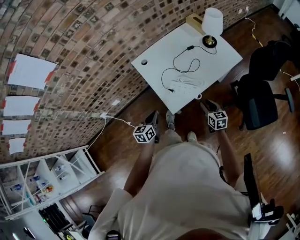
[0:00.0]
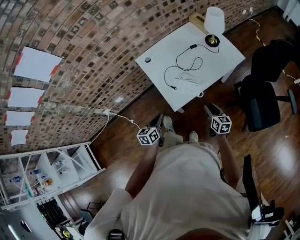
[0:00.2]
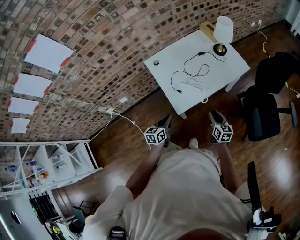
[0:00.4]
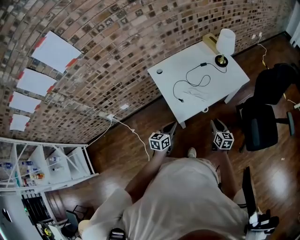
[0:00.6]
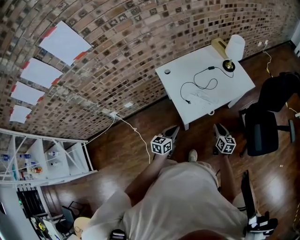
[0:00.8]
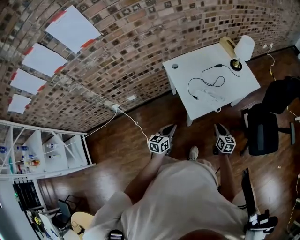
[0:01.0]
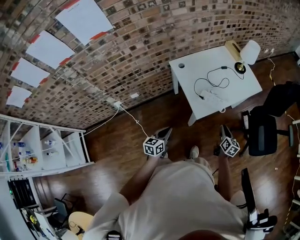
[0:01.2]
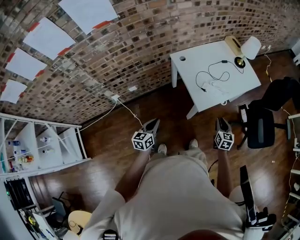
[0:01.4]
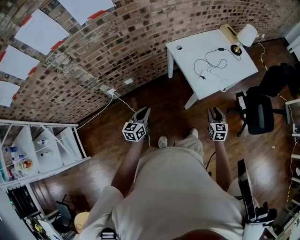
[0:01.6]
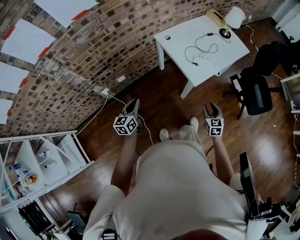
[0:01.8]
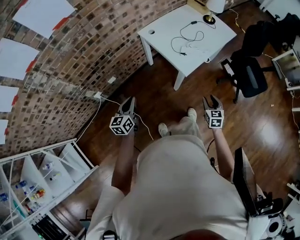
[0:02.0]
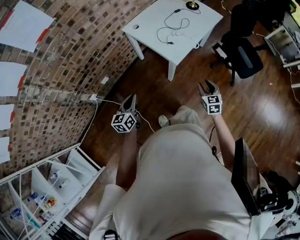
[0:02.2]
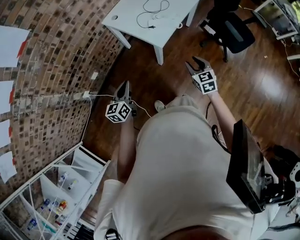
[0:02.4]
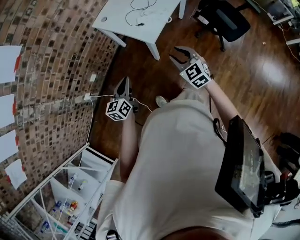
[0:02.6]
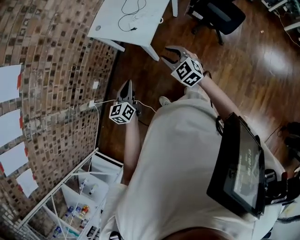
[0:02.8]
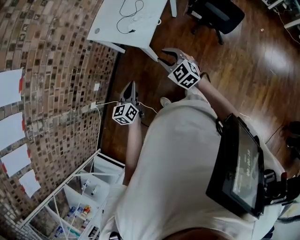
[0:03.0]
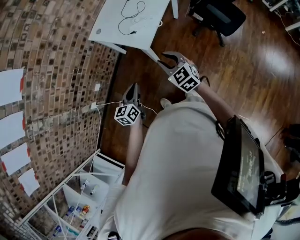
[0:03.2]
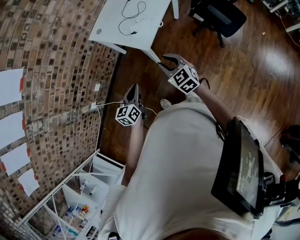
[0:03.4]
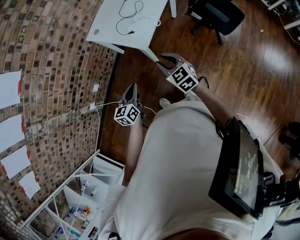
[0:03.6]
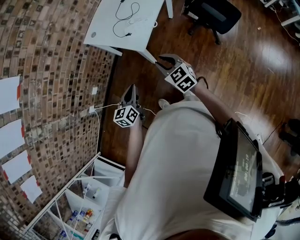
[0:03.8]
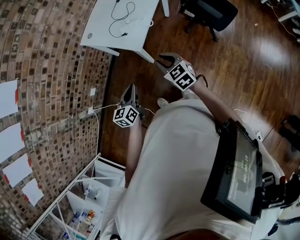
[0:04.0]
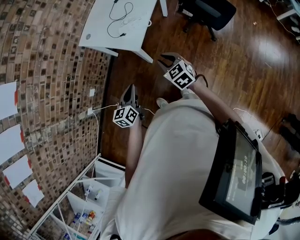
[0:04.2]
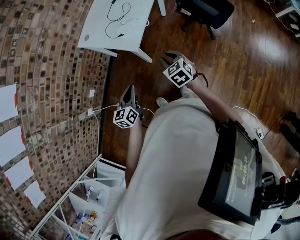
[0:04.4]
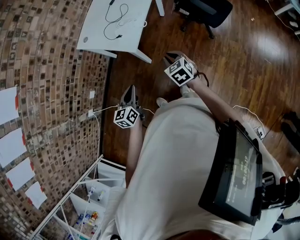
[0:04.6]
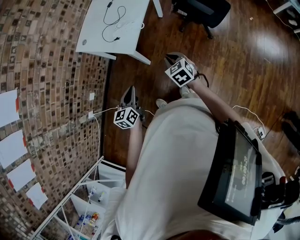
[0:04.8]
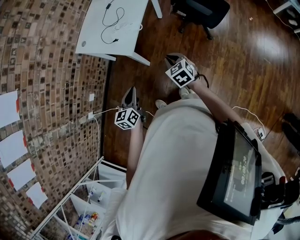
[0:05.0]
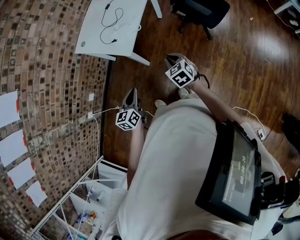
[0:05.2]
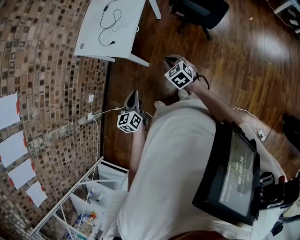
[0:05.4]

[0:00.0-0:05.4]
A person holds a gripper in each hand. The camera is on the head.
0:00.0 to 0:01.4: The left gripper moves to the left and backward, about 25 cm; the right gripper is displaced backward, to the left and upward by some 20 cm.
0:01.4 to 0:02.8: The right gripper heads backward and upward, covering approximately 15 cm, and rotates about 20 degrees. The left gripper heads to the right, covering about 10 cm, and changes its angle by approximately 20 degrees.
0:02.8 to 0:04.0: The left gripper changes place by about 5 cm.
0:04.0 to 0:05.4: The left gripper heads to the right, covering roughly 10 cm. The right gripper goes approximately 15 cm to the right and downward.

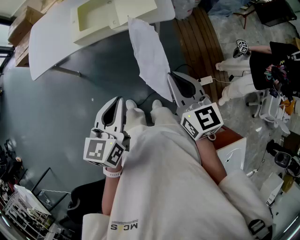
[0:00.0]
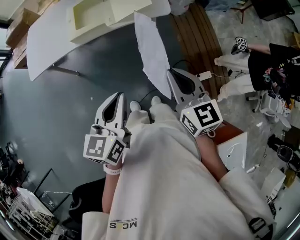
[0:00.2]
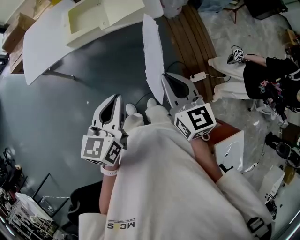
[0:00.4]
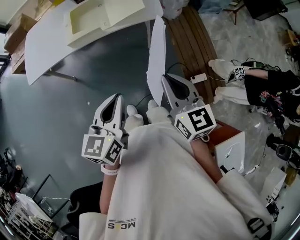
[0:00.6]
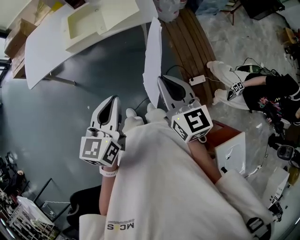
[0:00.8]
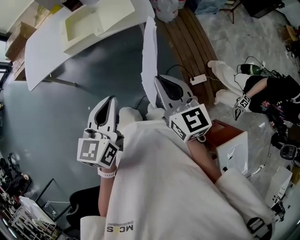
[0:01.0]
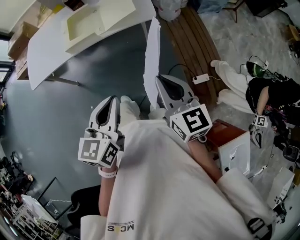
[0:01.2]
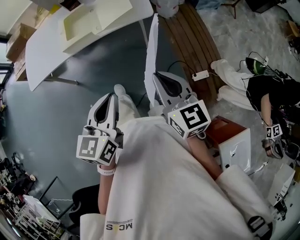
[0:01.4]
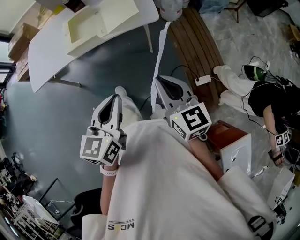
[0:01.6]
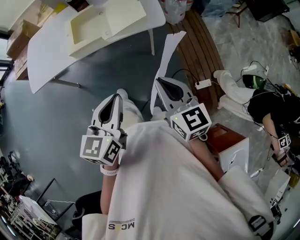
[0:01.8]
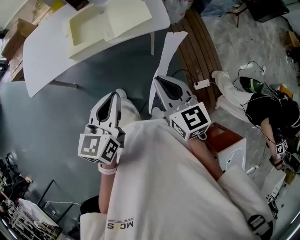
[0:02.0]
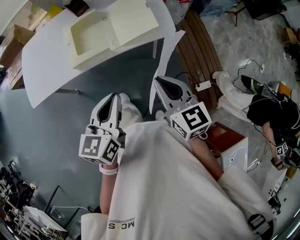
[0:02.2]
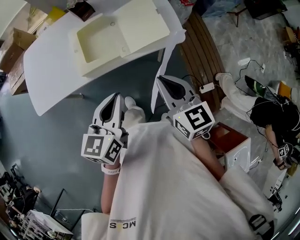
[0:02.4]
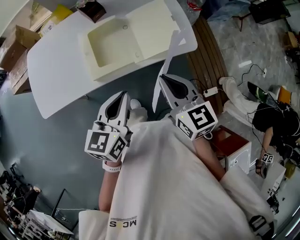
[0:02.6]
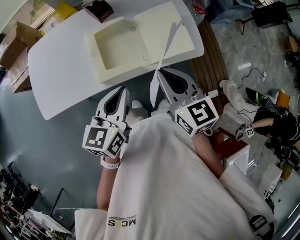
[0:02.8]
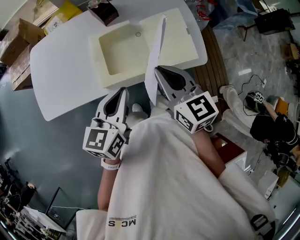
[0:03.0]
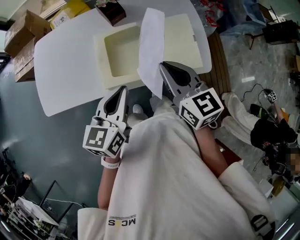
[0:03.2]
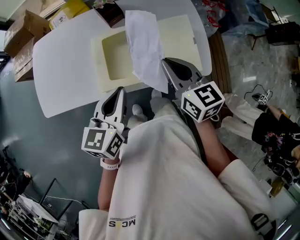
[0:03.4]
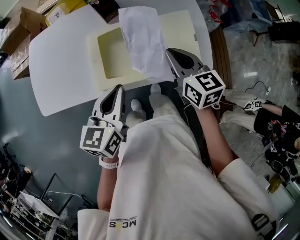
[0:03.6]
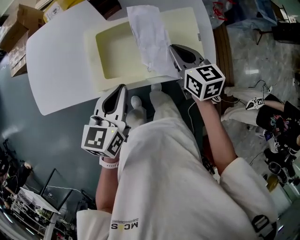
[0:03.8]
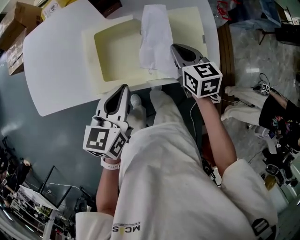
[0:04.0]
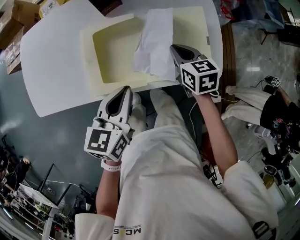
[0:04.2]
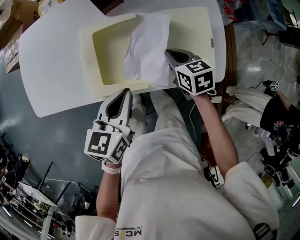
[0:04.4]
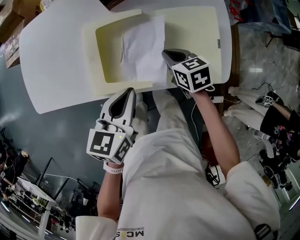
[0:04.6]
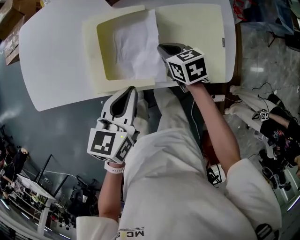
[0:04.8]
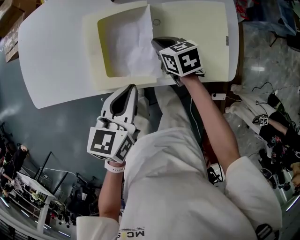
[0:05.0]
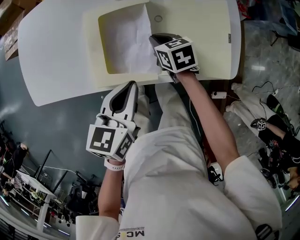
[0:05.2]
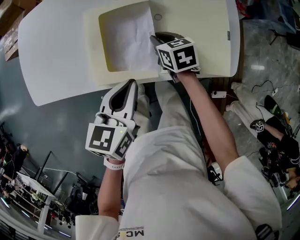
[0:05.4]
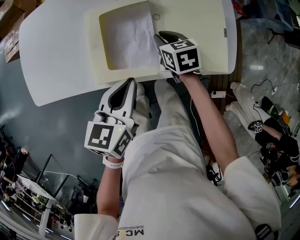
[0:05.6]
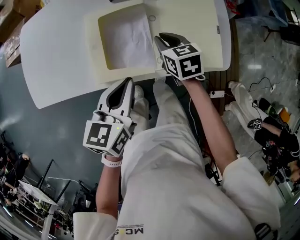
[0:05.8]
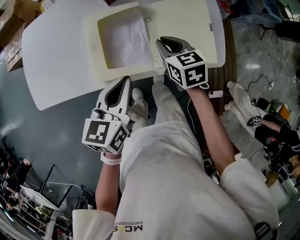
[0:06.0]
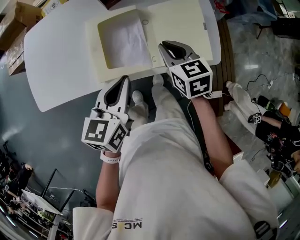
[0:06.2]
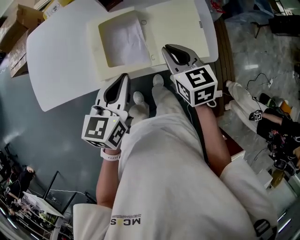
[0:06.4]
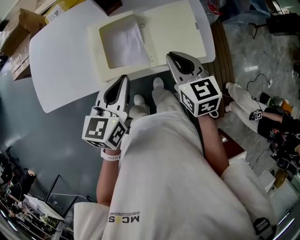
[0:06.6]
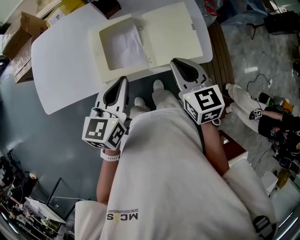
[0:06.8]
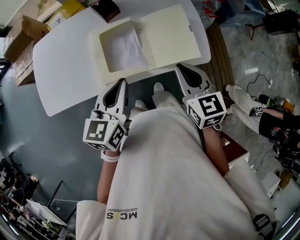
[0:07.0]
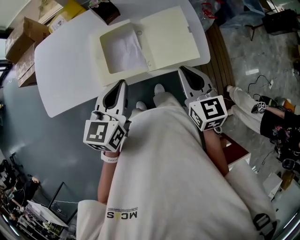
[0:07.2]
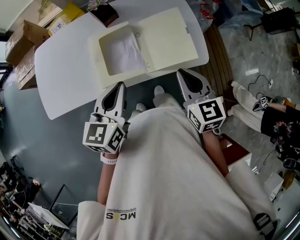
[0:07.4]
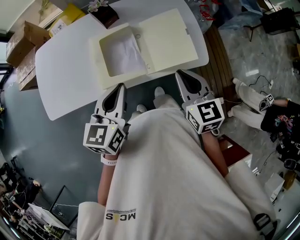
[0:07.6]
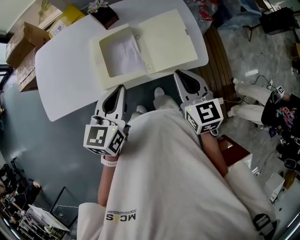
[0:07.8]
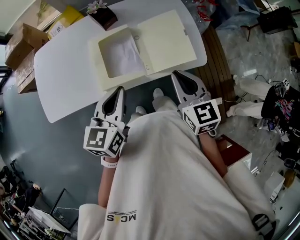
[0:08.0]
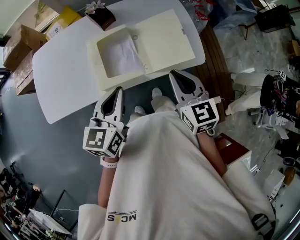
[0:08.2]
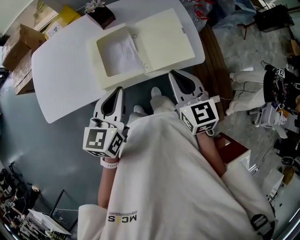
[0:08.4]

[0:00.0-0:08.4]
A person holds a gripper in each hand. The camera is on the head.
0:00.0 to 0:01.4: The right gripper moves roughly 5 cm. The left gripper goes approximately 5 cm to the right.
0:01.4 to 0:02.8: Both grippers are carried forward and to the left, roughly 40 cm.
0:02.8 to 0:04.2: The right gripper heads forward and downward, covering roughly 30 cm, and turns by approximately 30 degrees. The left gripper heads forward and downward, covering some 15 cm.
0:04.2 to 0:05.6: The right gripper shifts approximately 10 cm to the left and downward.
0:05.6 to 0:07.0: The left gripper heads upward and backward, covering roughly 10 cm; the right gripper shifts approximately 30 cm upward and backward, and turns by some 30 degrees.
0:07.0 to 0:08.4: The grippers make only small movements.

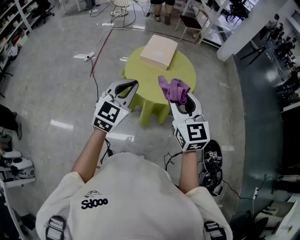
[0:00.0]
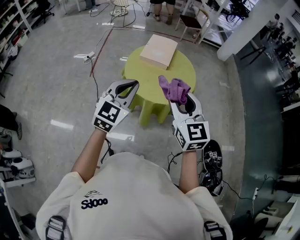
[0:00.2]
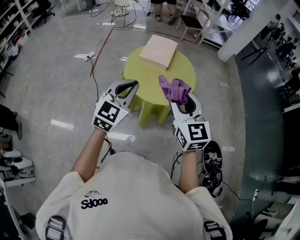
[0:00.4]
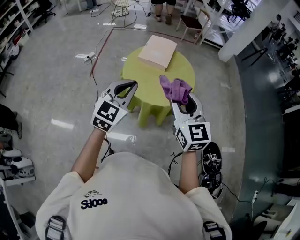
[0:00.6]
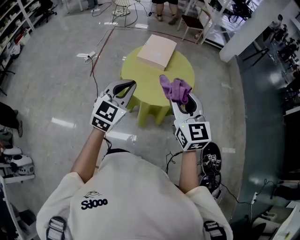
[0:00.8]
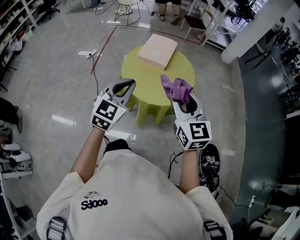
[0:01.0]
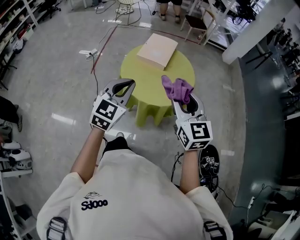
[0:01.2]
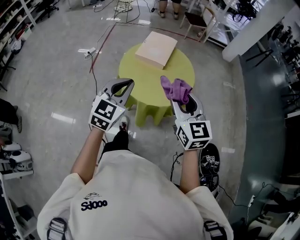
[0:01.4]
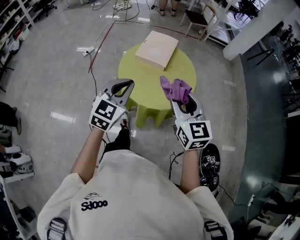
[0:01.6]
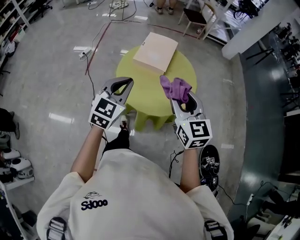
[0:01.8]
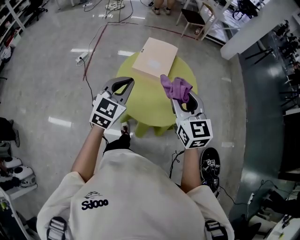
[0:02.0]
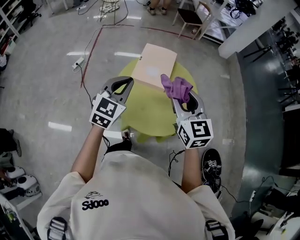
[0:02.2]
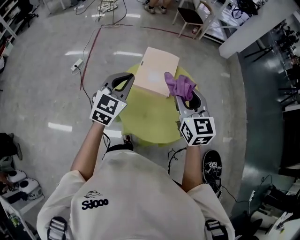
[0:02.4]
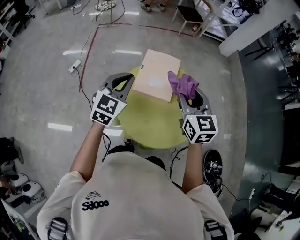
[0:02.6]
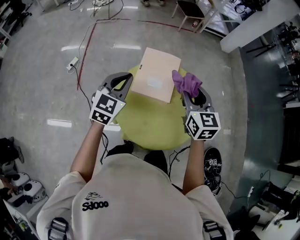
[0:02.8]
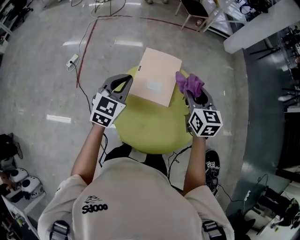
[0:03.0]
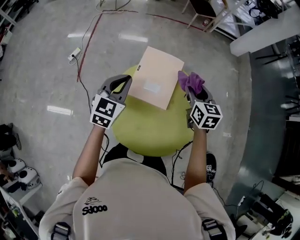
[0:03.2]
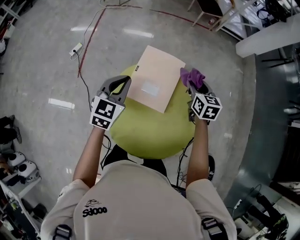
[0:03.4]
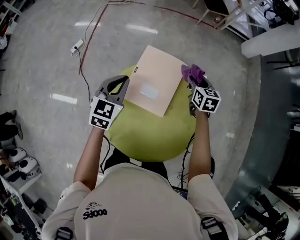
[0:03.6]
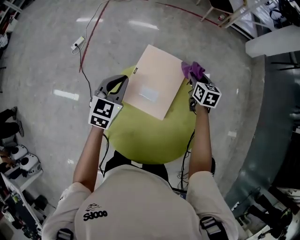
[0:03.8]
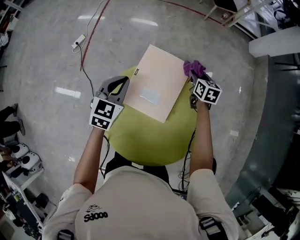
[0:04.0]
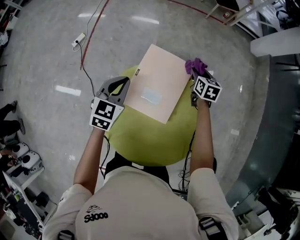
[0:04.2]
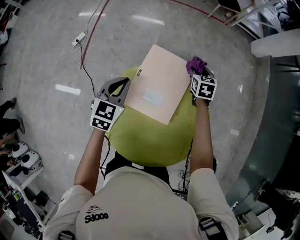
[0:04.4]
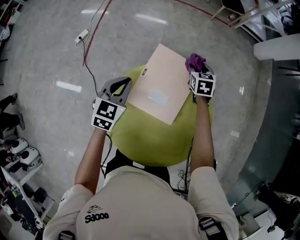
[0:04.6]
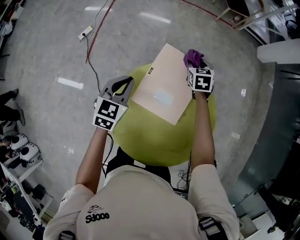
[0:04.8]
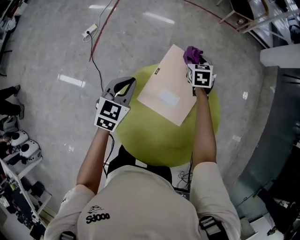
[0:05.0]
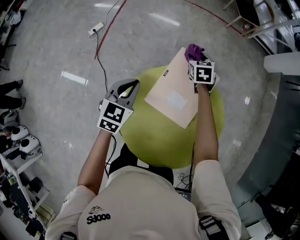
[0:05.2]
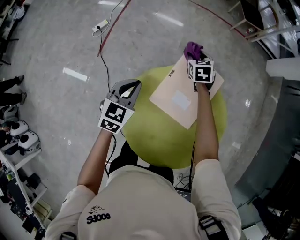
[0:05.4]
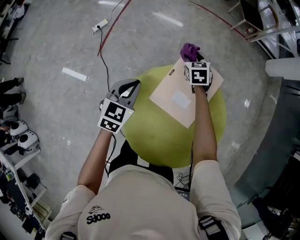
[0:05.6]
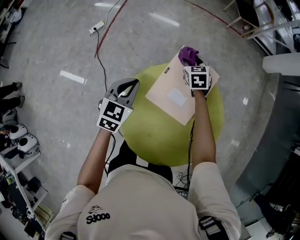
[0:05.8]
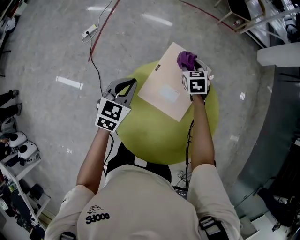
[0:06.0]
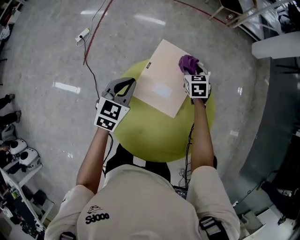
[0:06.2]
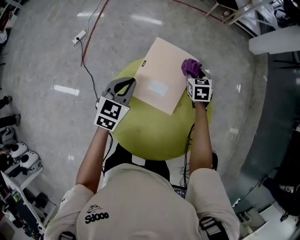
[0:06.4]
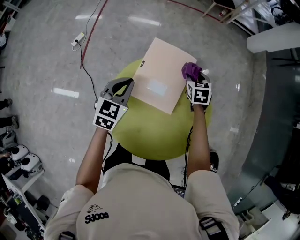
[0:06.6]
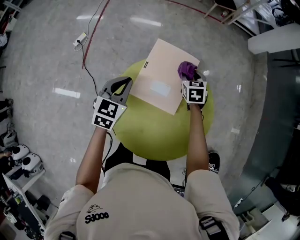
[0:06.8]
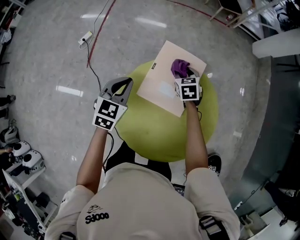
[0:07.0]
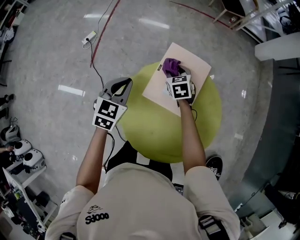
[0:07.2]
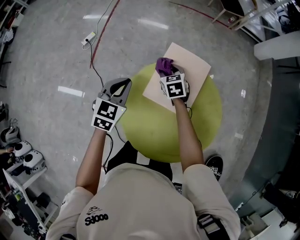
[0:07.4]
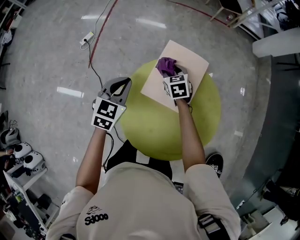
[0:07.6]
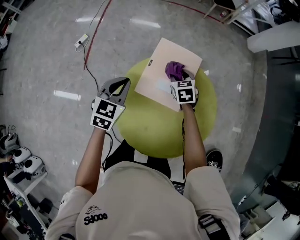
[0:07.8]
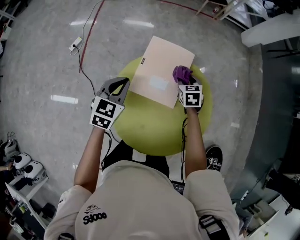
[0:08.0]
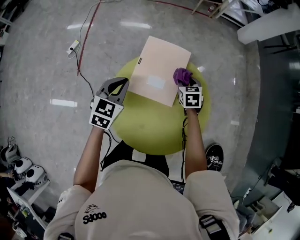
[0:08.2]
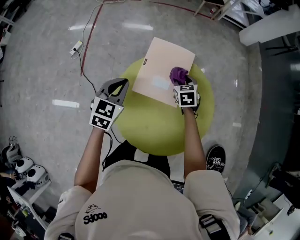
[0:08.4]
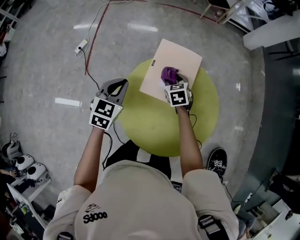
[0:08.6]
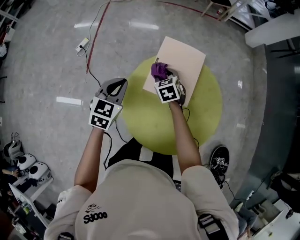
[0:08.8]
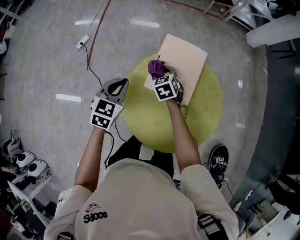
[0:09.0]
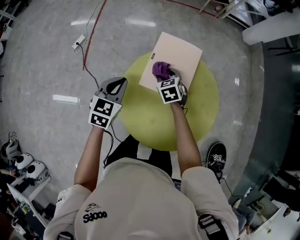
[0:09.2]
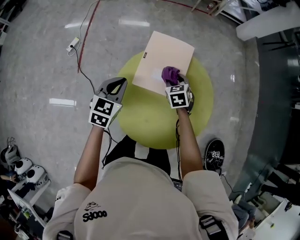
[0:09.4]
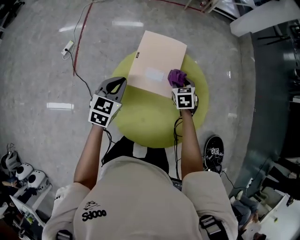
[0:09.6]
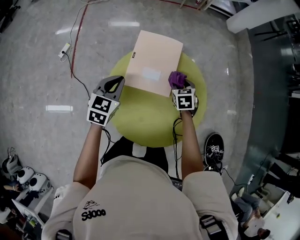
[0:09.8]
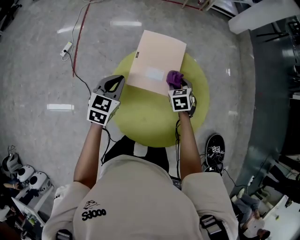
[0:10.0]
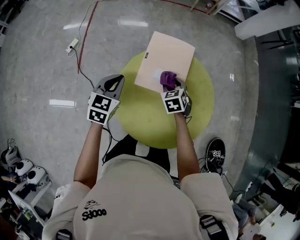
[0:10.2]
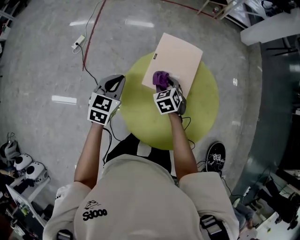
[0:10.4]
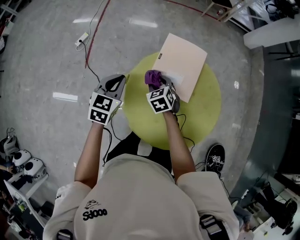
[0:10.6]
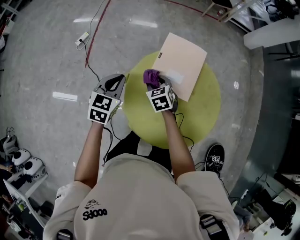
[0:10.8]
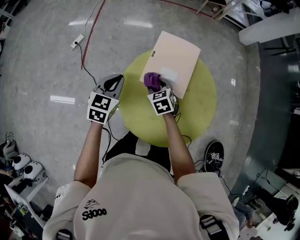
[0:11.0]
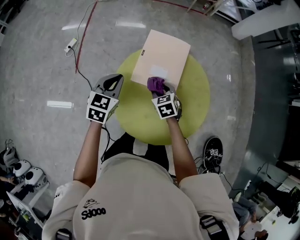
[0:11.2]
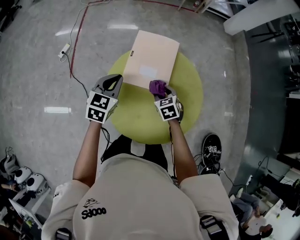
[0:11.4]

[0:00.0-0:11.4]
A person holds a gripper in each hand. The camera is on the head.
0:00.0 to 0:01.4: The left gripper changes place by about 5 cm; the right gripper goes some 10 cm to the right and forward.
0:01.4 to 0:02.8: Both grippers travel together forward, roughly 35 cm.
0:02.8 to 0:04.2: The right gripper travels downward and forward by about 40 cm, and swivels about 30 degrees. Meanwhile the left gripper travels downward and forward by about 20 cm, and swivels approximately 20 degrees.
0:04.2 to 0:05.6: The right gripper goes approximately 20 cm to the left, and turns by about 30 degrees; the left gripper goes some 10 cm to the left.
0:05.6 to 0:07.2: The right gripper moves backward, roughly 10 cm, and goes to the right and returns, approximately 20 cm each way, while the left gripper travels to the right and back again, roughly 10 cm each way.
0:07.2 to 0:08.6: The right gripper is displaced backward by roughly 5 cm, and moves approximately 15 cm to the right and comes back.
0:08.6 to 0:10.0: The right gripper swings left and right, some 25 cm each way, with 2 reversals.
0:10.0 to 0:11.4: The right gripper heads backward, covering about 5 cm, and travels to the left and back again, approximately 20 cm each way; the left gripper reaches approximately 10 cm to the left, then returns.
